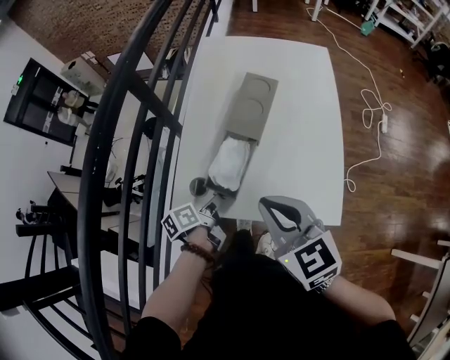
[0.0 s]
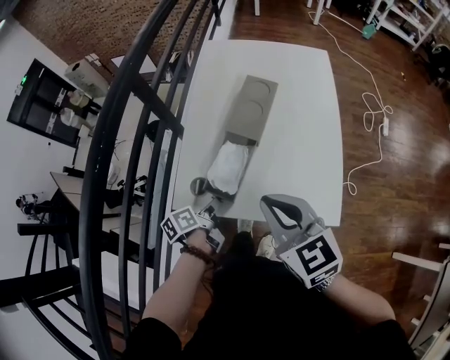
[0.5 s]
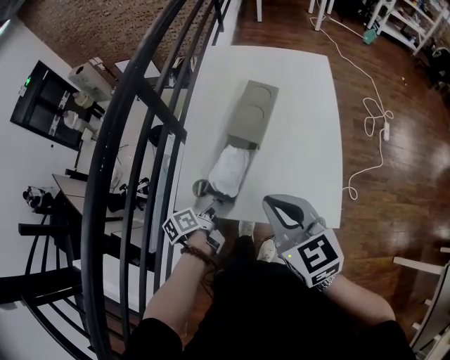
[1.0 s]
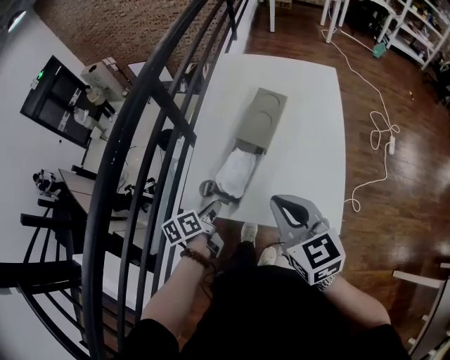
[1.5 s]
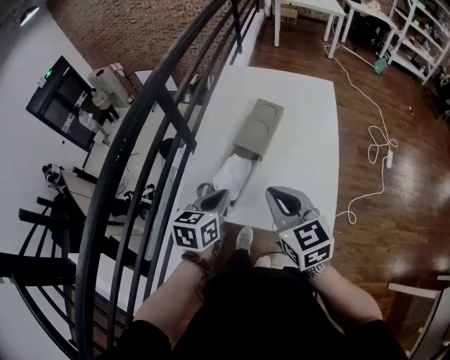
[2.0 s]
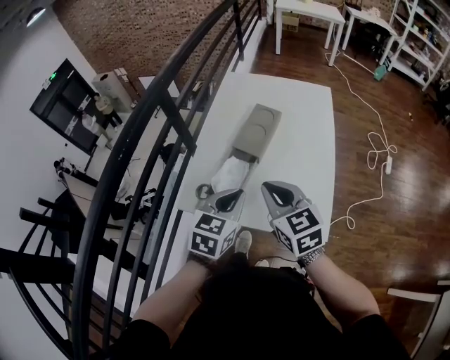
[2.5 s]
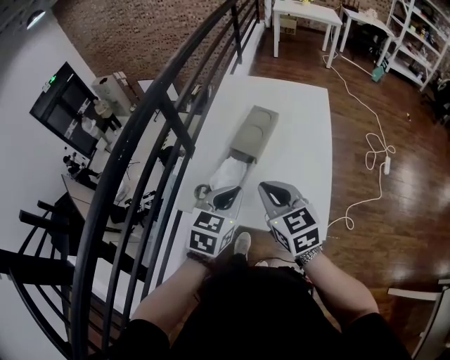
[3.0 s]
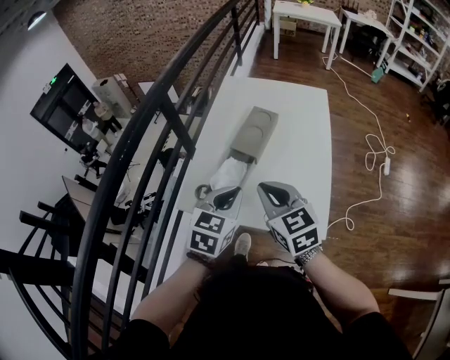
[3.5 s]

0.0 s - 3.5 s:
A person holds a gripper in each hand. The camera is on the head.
0.0 s - 2.0 s: The left gripper moves upward, approximately 15 cm, and rolls clockwise, seen from behind, by roughly 50 degrees.
2.0 s - 3.5 s: The left gripper is displaced to the right by about 5 cm, and swivels approximately 20 degrees.

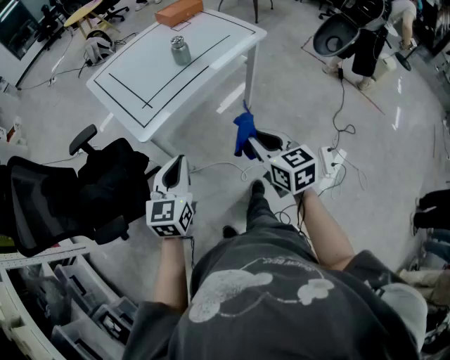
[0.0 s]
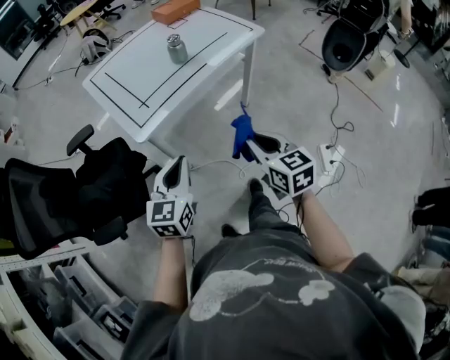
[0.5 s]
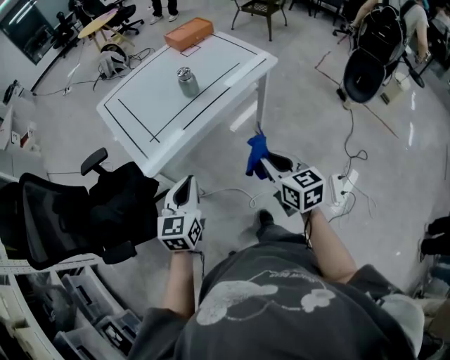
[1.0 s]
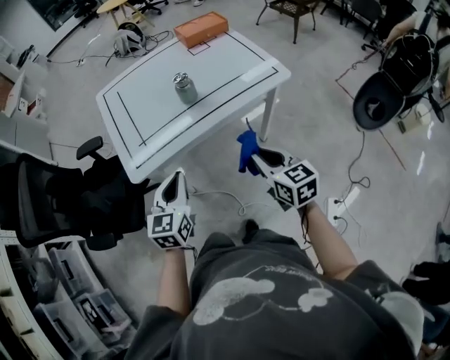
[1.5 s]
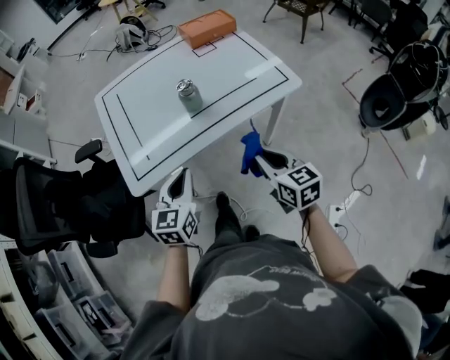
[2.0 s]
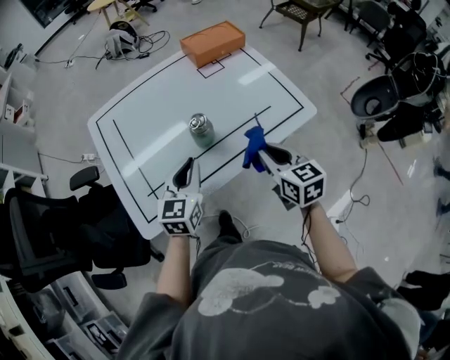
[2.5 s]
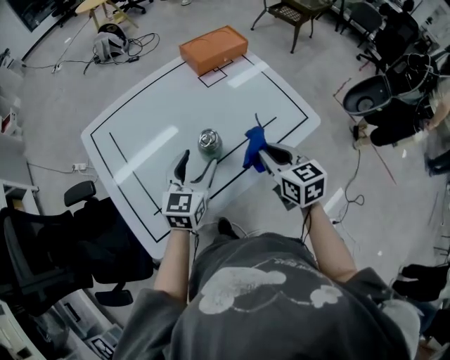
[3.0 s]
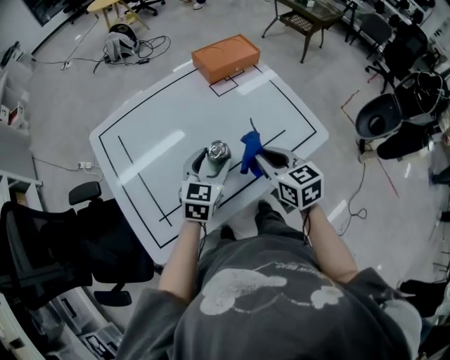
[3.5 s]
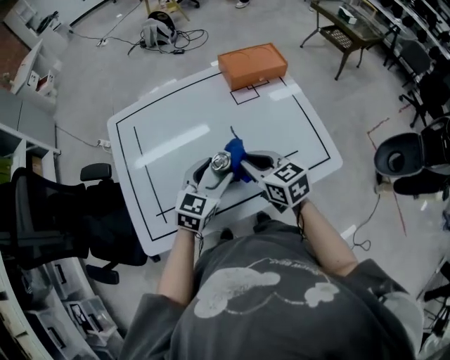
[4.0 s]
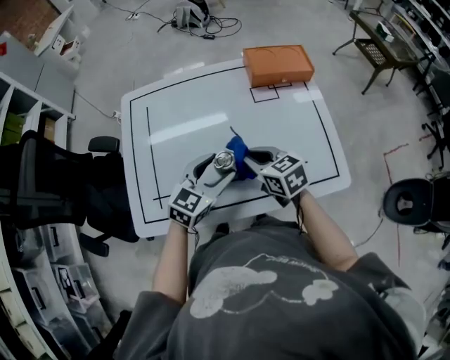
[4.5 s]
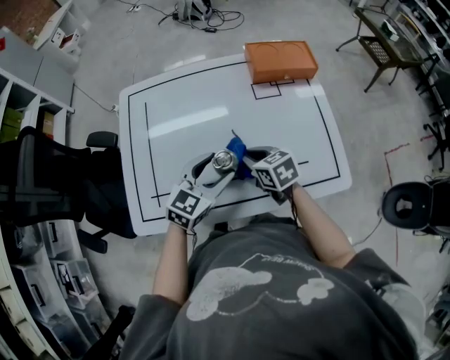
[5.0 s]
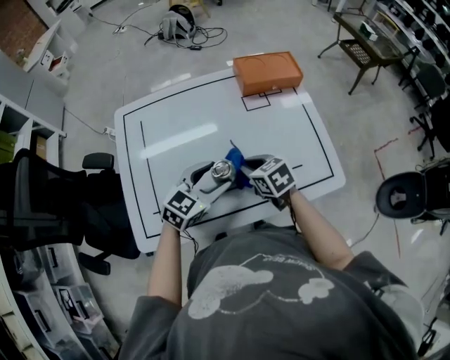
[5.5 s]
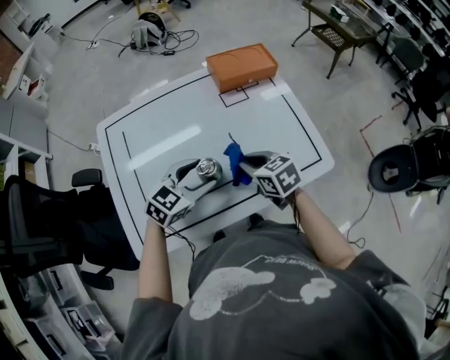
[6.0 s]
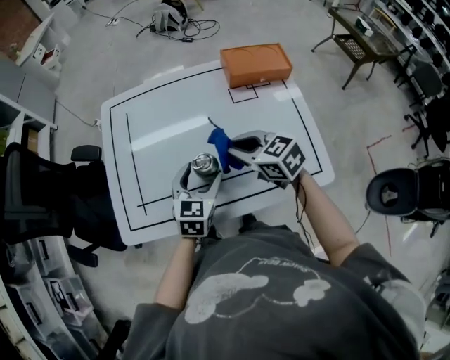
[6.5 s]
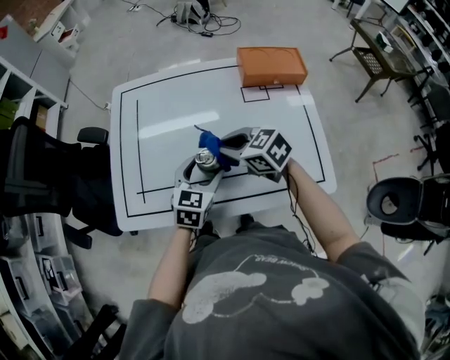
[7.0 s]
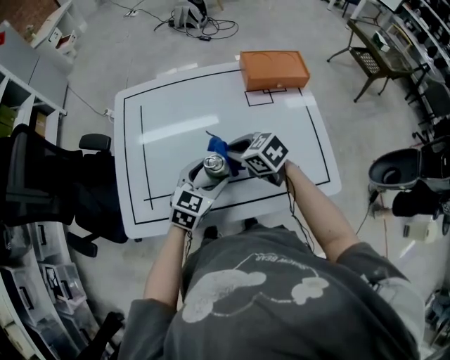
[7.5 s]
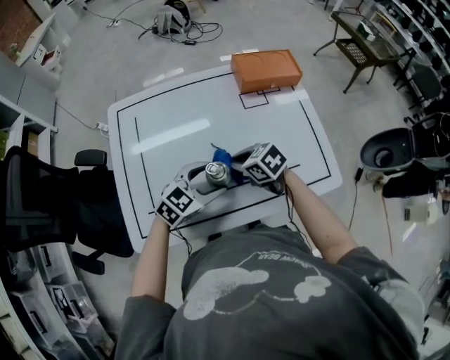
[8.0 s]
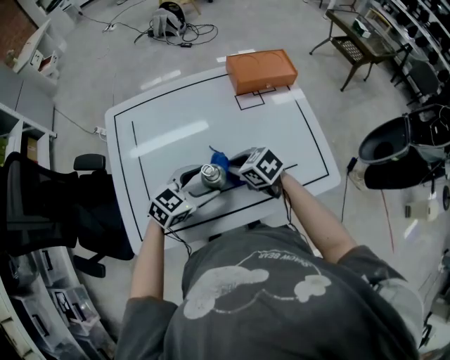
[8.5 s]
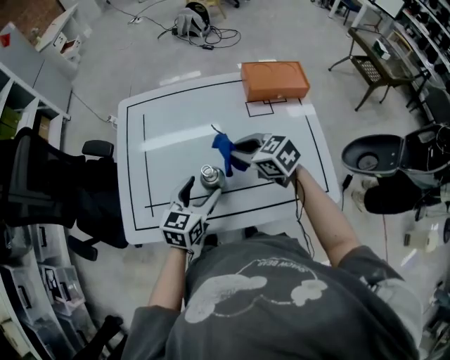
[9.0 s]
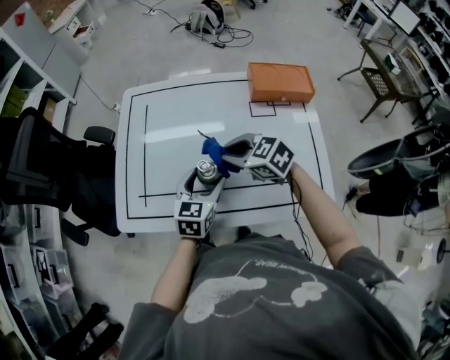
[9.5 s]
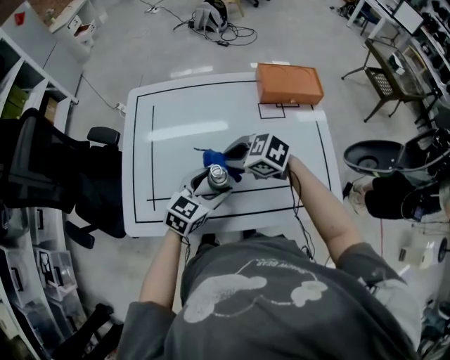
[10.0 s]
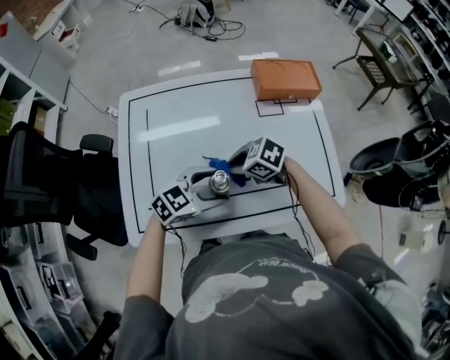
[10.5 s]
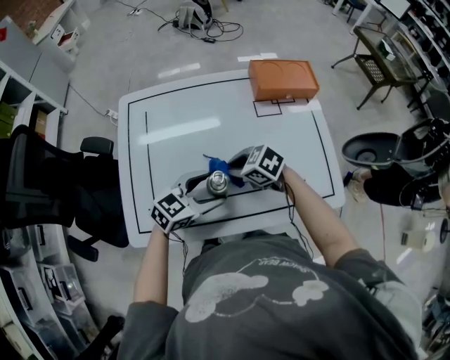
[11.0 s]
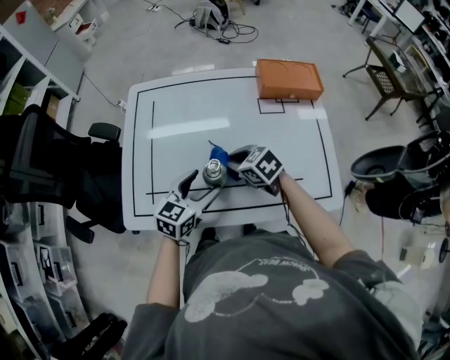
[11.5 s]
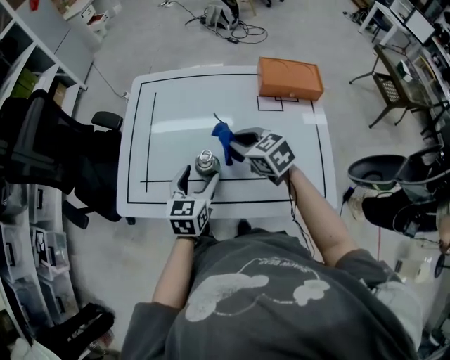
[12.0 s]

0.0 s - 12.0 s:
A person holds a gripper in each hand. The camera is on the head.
0.0 s - 2.0 s: The grippers both shift forward and to the right by approximately 25 cm.
2.0 s - 4.0 s: The two grippers go approximately 30 cm forward. The right gripper rotates some 20 degrees; the left gripper opens its fingers.
6.0 s - 8.0 s: The right gripper changes place by some 10 cm, and rotates roughly 20 degrees.
8.0 s - 10.0 s: The right gripper moves upward, some 5 cm, and turns by some 30 degrees. The left gripper rotates about 20 degrees.
10.0 s - 12.0 s: The left gripper changes its angle by about 30 degrees. The right gripper goes downward and returns, roughly 5 cm each way, and swivels approximately 20 degrees.

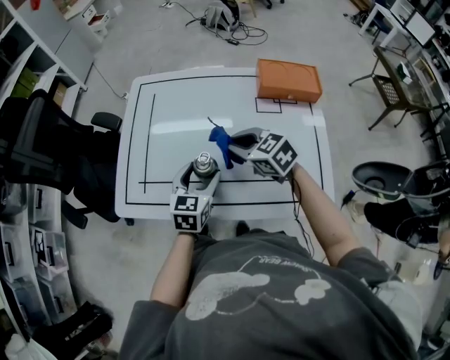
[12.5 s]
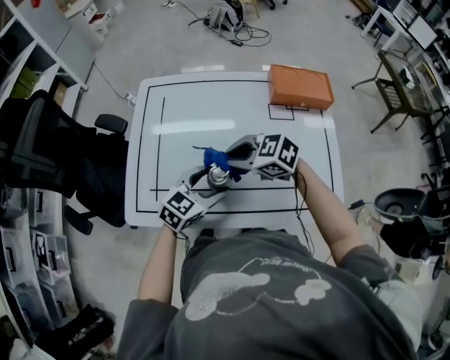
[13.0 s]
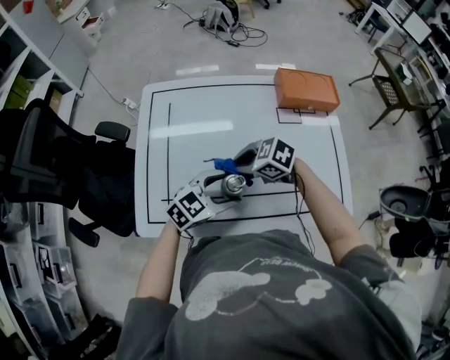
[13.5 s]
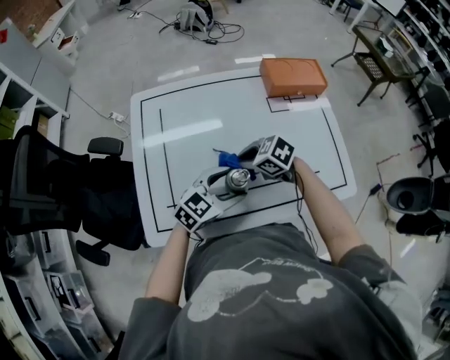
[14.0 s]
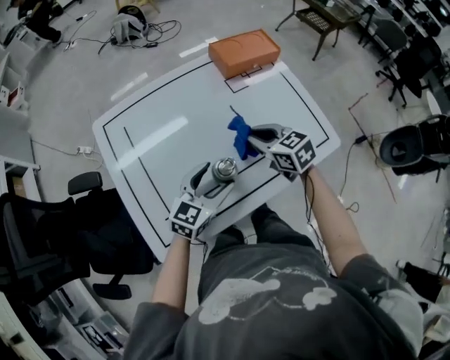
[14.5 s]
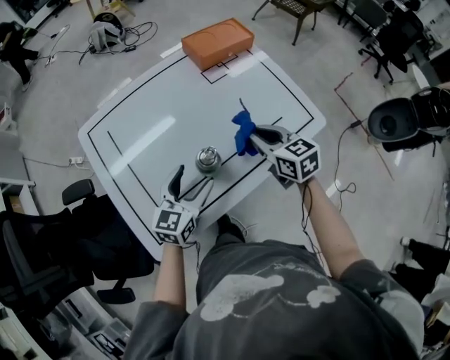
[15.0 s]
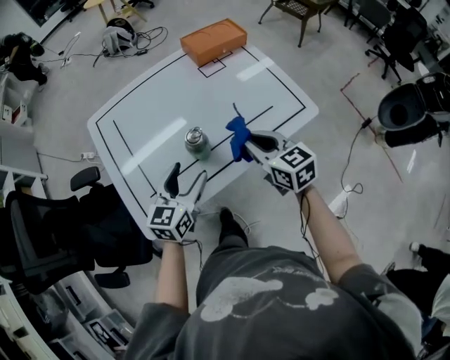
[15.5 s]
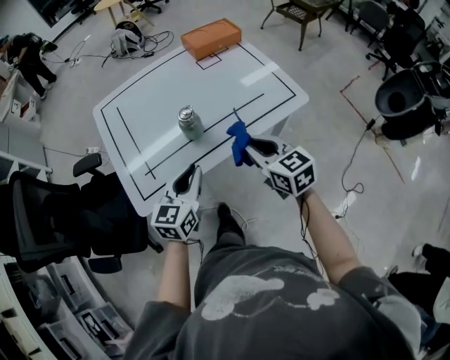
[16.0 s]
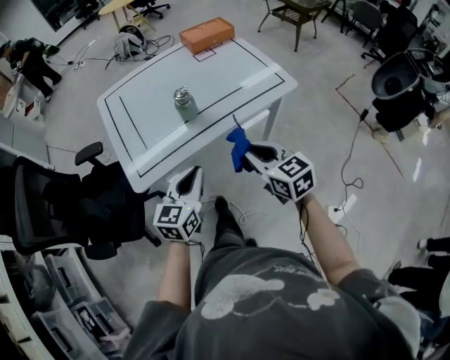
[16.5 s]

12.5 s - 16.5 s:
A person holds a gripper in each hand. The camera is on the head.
12.5 s - 14.5 s: The right gripper reaches approximately 10 cm downward, then returns, and turns by roughly 40 degrees, while the left gripper rotates some 50 degrees.
14.5 s - 16.5 s: Both grippers move backward, about 30 cm. The left gripper closes up.

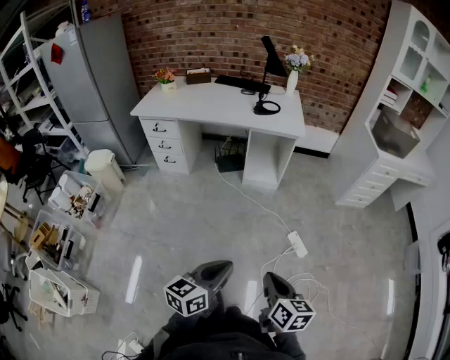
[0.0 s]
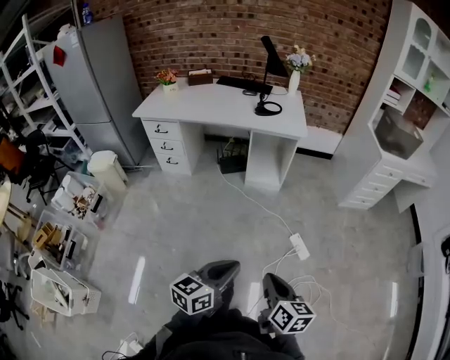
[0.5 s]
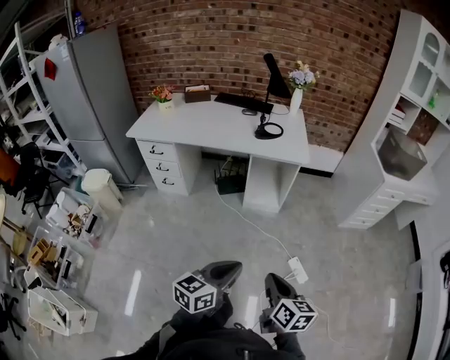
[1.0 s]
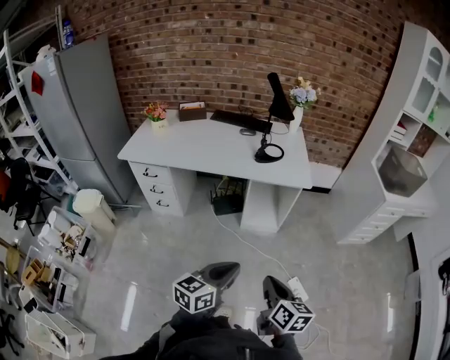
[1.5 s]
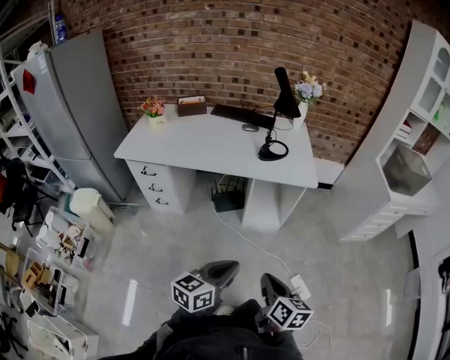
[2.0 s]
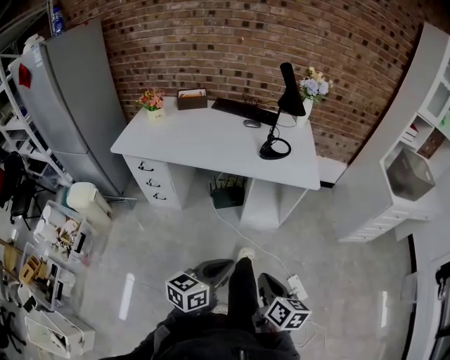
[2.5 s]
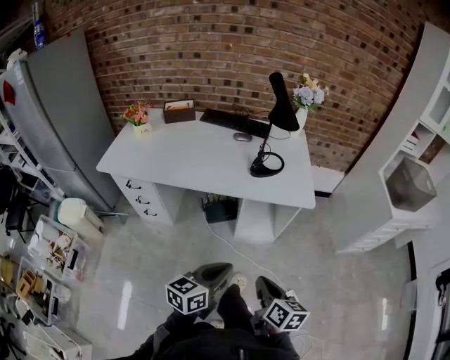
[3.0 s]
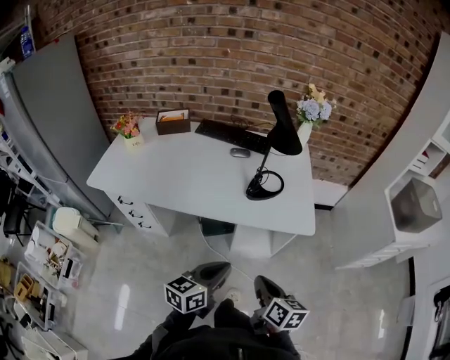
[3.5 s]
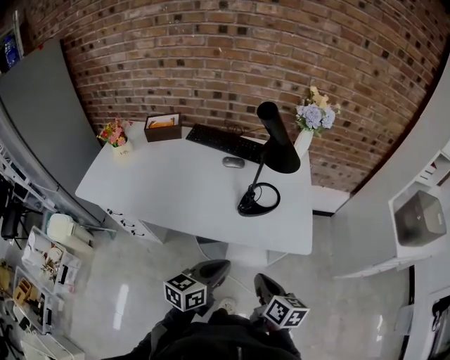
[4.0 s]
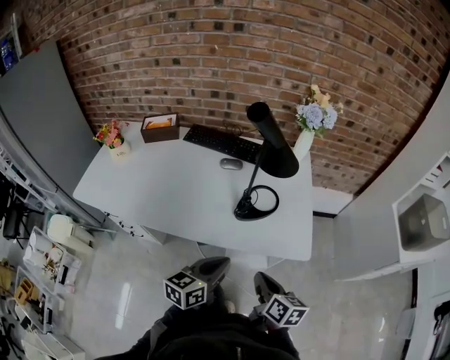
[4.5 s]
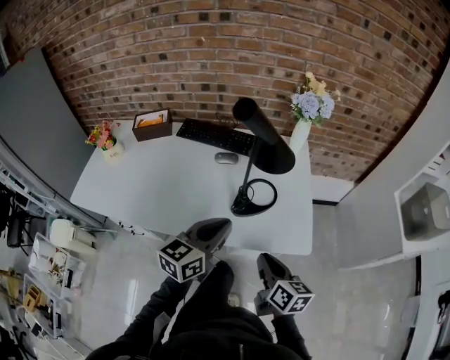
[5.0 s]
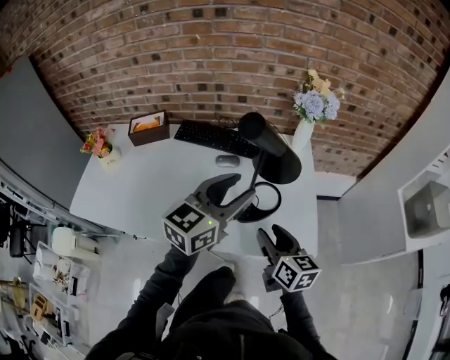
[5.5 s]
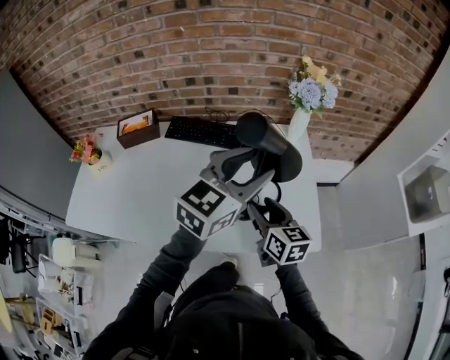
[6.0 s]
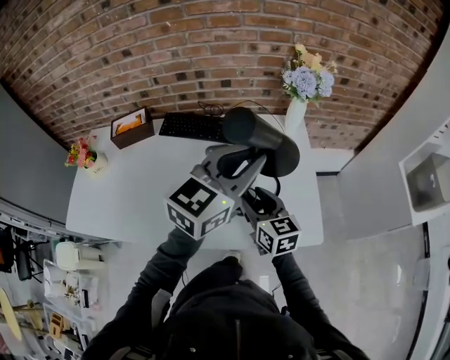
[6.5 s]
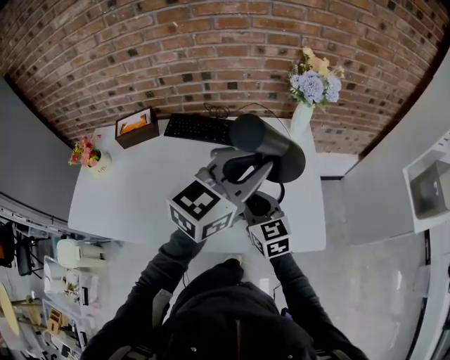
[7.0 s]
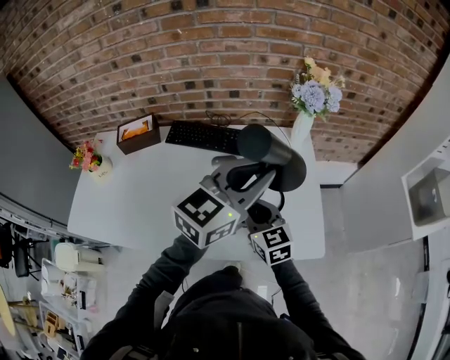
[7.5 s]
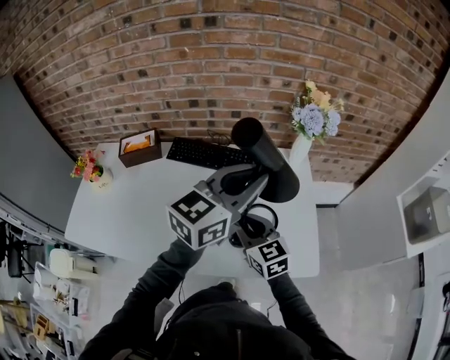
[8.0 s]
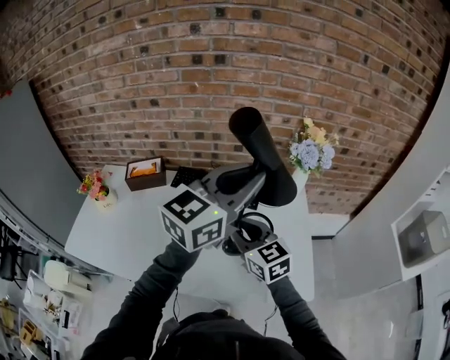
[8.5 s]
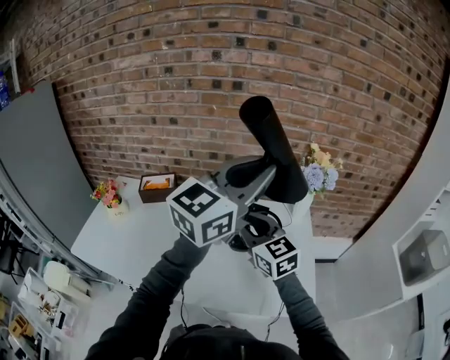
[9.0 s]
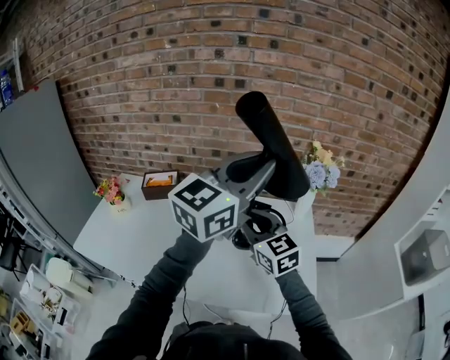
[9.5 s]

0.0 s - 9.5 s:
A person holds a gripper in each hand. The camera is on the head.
0.0 s - 2.0 s: The left gripper goes some 30 cm forward; the right gripper moves forward and to the left, roughly 35 cm.
2.0 s - 4.0 s: Both grippers travel together forward, some 40 cm.
4.0 s - 5.5 s: The left gripper shifts some 30 cm forward and upward, changes its angle by some 30 degrees, and opens up. Meanwhile the right gripper travels forward by about 20 cm, and opens.
5.5 s - 7.5 s: The left gripper heads forward, covering roughly 5 cm, and closes its fingers. The right gripper goes about 15 cm to the left and forward, turns by roughly 30 degrees, and closes.
7.5 s - 9.5 s: Both grippers move upward, roughly 20 cm.
